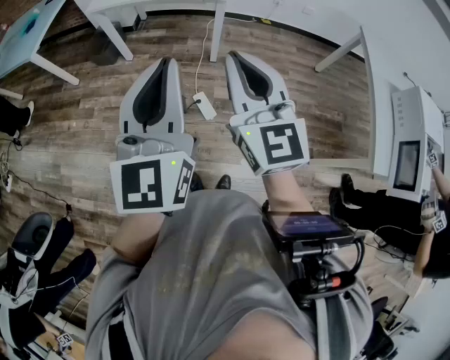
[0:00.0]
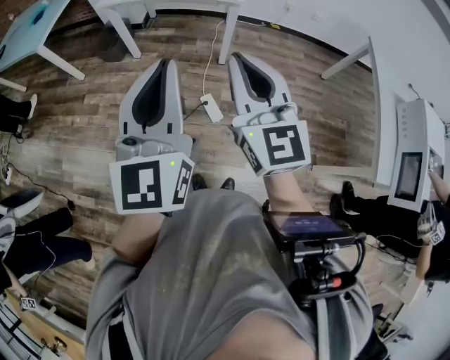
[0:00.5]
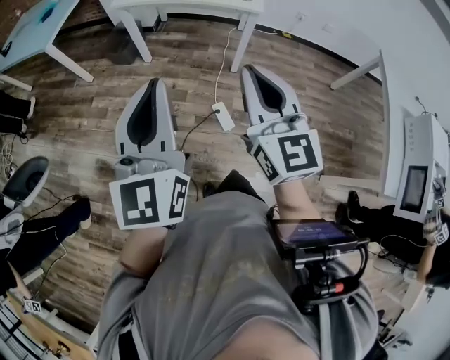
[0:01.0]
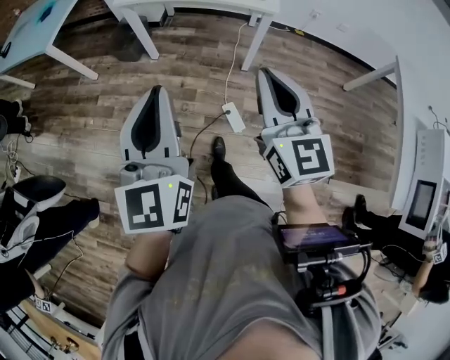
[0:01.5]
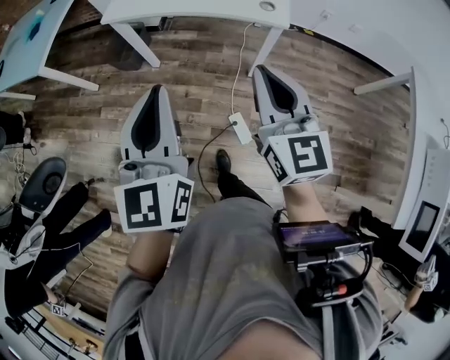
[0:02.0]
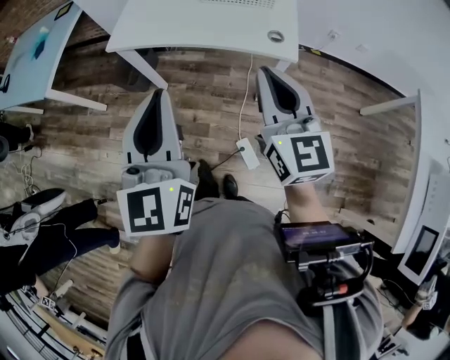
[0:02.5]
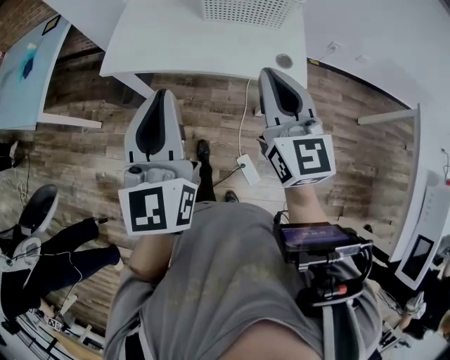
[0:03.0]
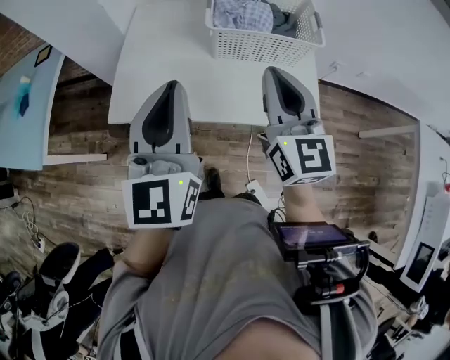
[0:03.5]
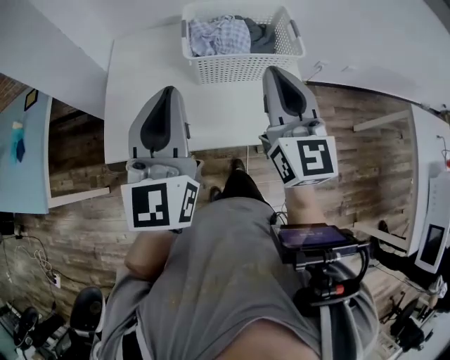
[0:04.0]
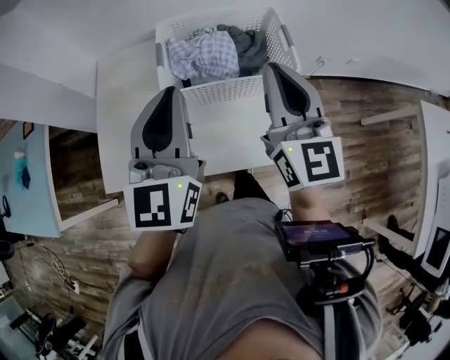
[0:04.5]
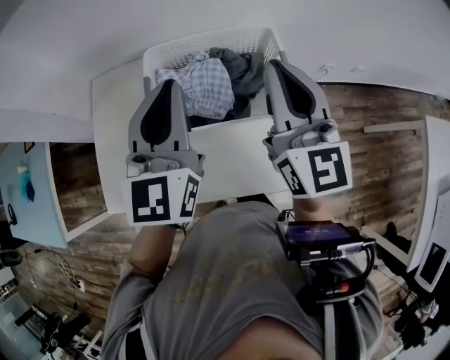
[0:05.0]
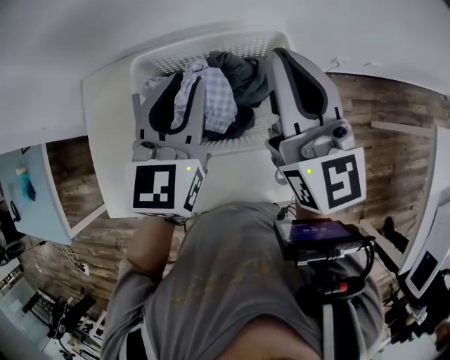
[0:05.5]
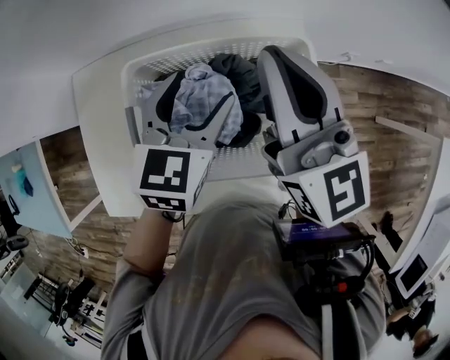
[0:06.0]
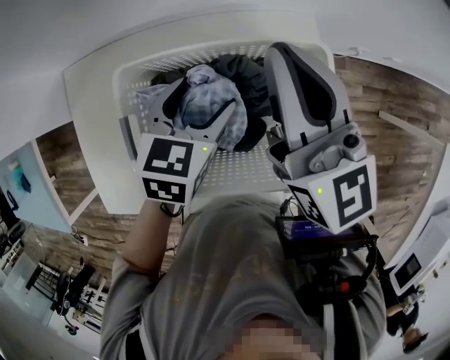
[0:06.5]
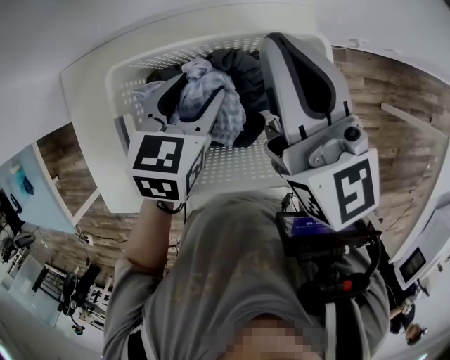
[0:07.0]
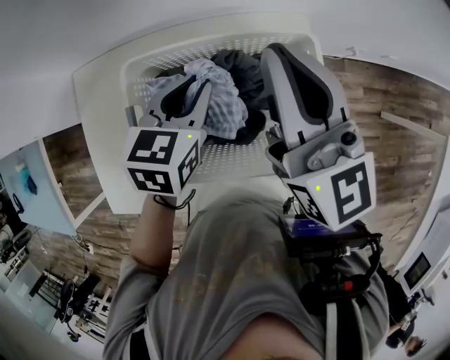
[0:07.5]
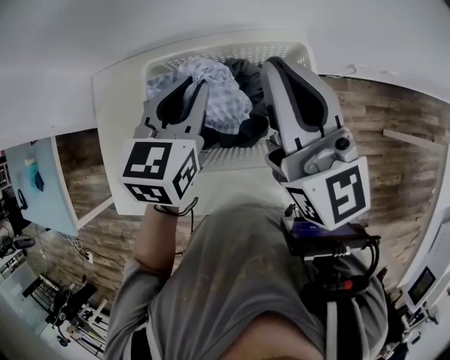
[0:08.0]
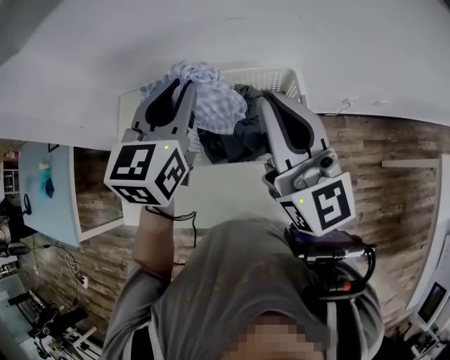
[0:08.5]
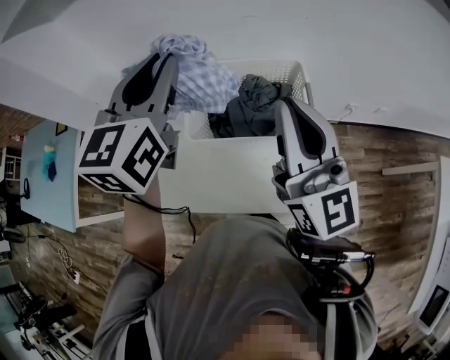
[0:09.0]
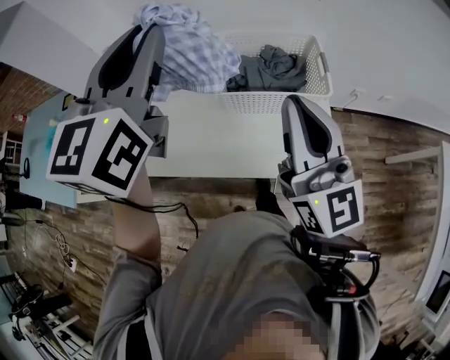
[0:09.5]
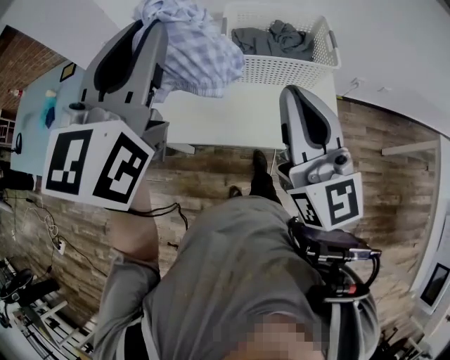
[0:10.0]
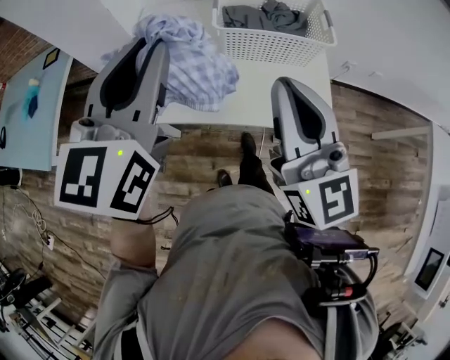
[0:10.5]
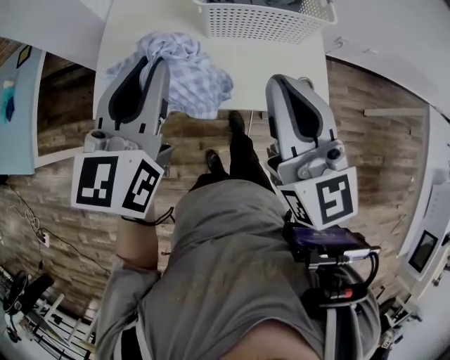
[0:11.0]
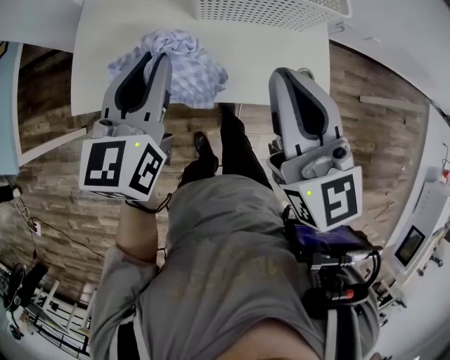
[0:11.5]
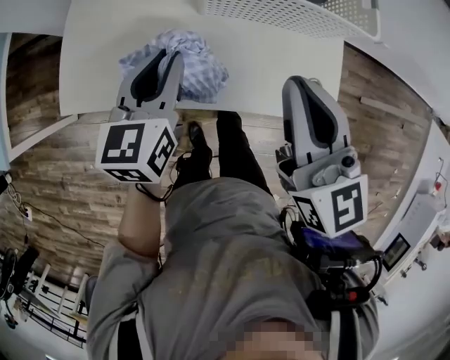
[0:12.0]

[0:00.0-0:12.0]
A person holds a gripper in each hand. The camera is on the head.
0:00.0 to 0:02.0: The left gripper is displaced forward and to the left by approximately 30 cm, while the right gripper moves forward, about 30 cm.
0:02.0 to 0:04.0: The two grippers travel together, forward, approximately 40 cm.
0:04.0 to 0:06.0: The left gripper shifts some 40 cm forward, downward and to the right, tilts its fingers roughly 40 degrees downward, and opens. The right gripper is displaced forward by roughly 30 cm.
0:06.0 to 0:08.0: The left gripper shifts by approximately 5 cm, and closes.
0:08.0 to 0:10.0: The right gripper shifts roughly 35 cm backward, while the left gripper travels backward, upward and to the left by roughly 40 cm, and tips its fingers upward by some 30 degrees.
0:10.0 to 0:12.0: The left gripper goes some 35 cm downward, and turns by about 30 degrees; the right gripper heads downward, covering about 15 cm, and rotates approximately 20 degrees.

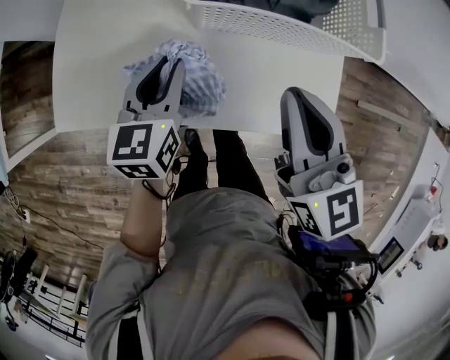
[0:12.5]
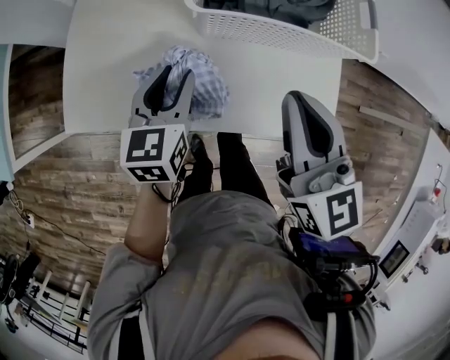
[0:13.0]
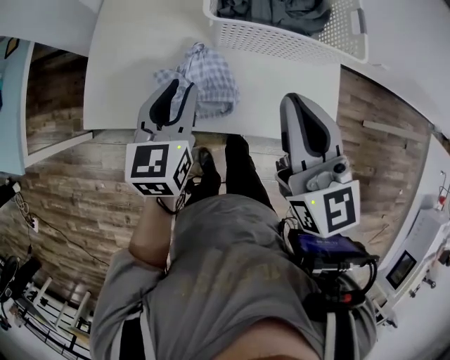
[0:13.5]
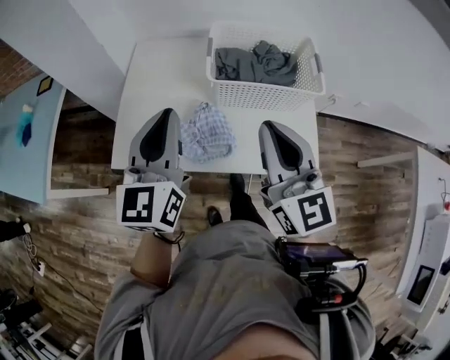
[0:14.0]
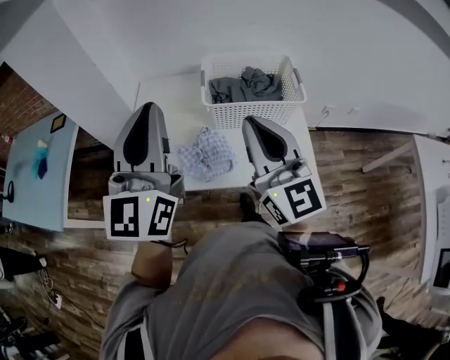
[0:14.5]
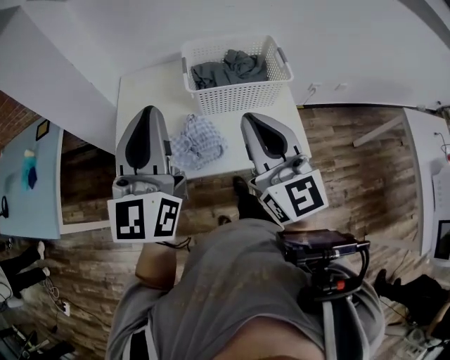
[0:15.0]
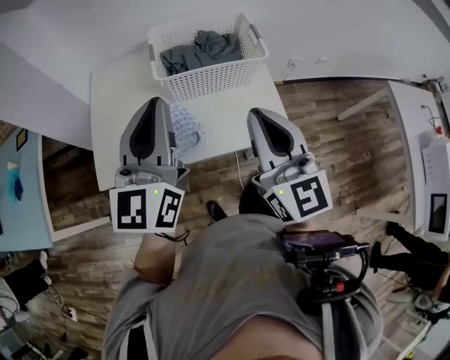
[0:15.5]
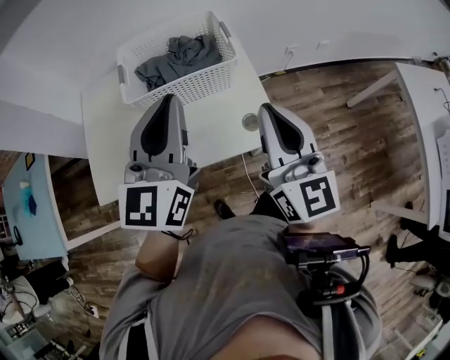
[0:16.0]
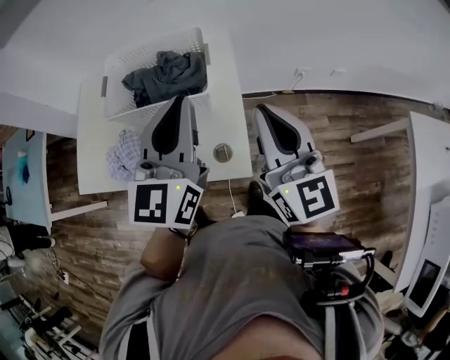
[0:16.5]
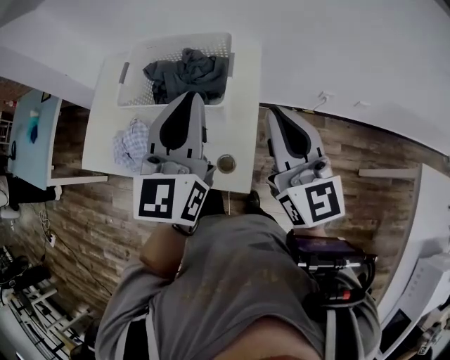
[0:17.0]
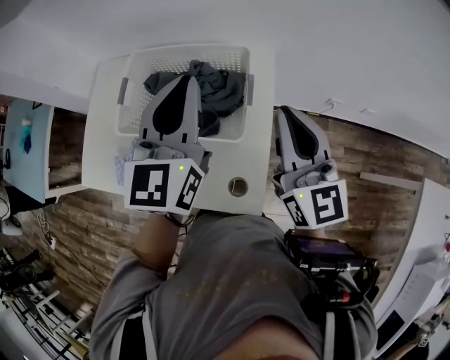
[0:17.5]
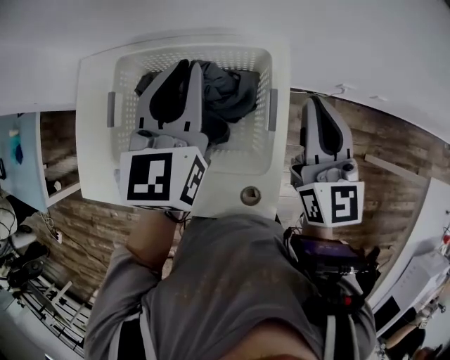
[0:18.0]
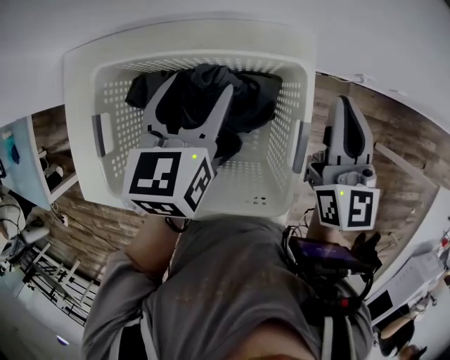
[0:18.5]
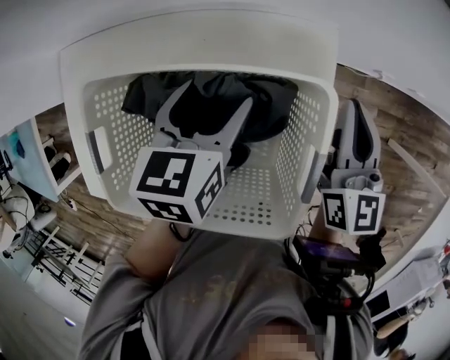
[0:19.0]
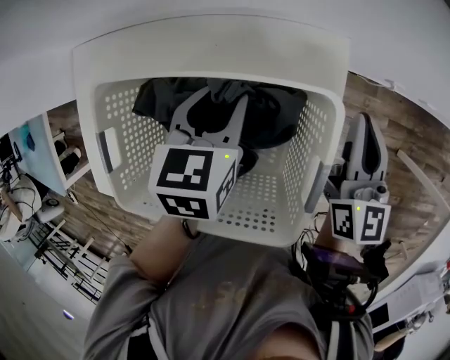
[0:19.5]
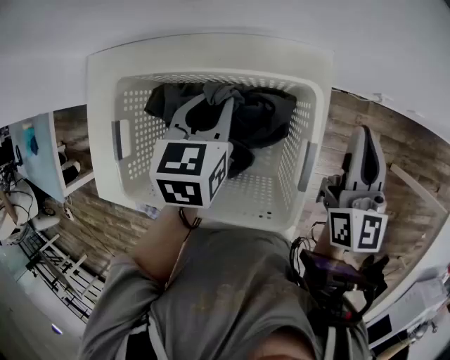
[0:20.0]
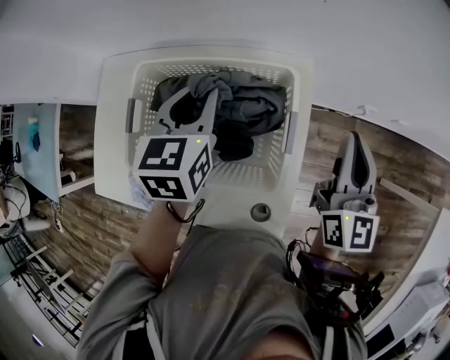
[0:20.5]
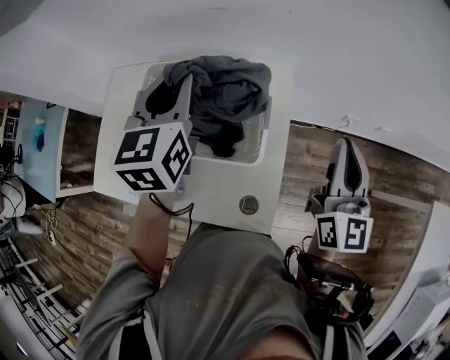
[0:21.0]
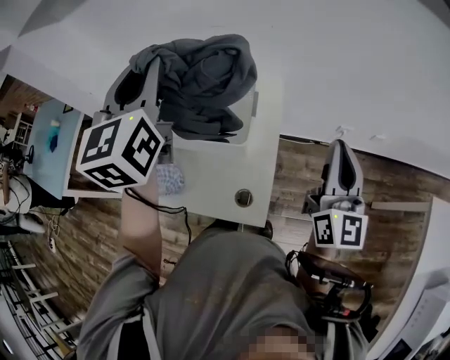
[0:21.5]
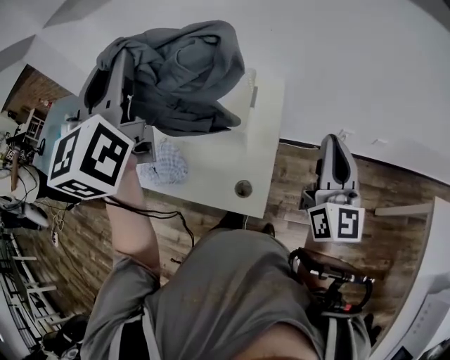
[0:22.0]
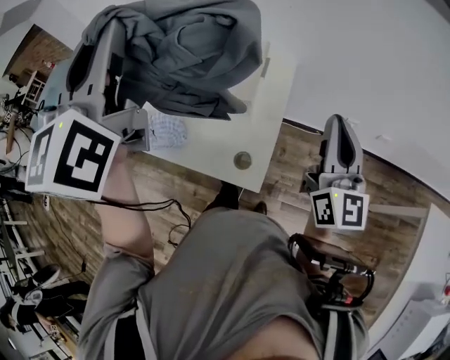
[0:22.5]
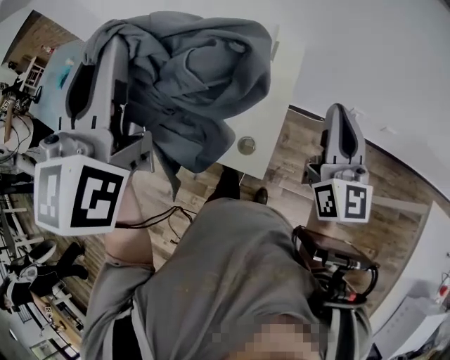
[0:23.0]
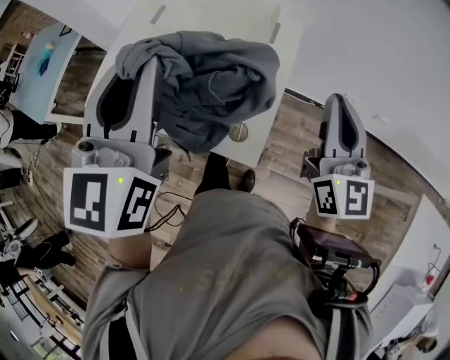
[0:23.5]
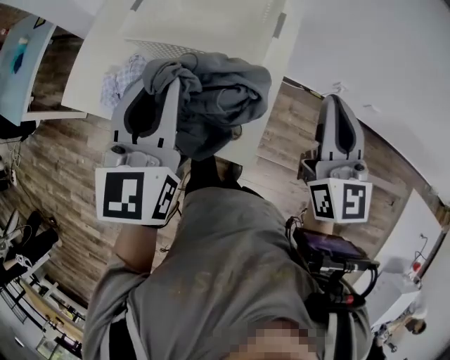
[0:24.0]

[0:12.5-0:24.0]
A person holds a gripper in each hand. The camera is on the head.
0:12.5 to 0:14.5: The left gripper travels upward by roughly 35 cm, and points its fingers roughly 40 degrees further upward. Meanwhile the right gripper is displaced upward and backward by roughly 20 cm, and rotates about 30 degrees.
0:14.5 to 0:16.5: Both grippers move to the right, some 35 cm.
0:16.5 to 0:18.5: Both grippers travel together forward and downward, some 35 cm. The left gripper tilts its fingers approximately 40 degrees downward, and opens its fingers; the right gripper turns by about 20 degrees.
0:18.5 to 0:20.0: The left gripper closes up.
0:20.0 to 0:22.0: The right gripper goes about 30 cm backward and upward, and changes its angle by some 30 degrees; the left gripper heads upward and backward, covering approximately 50 cm, and angles its fingers upward, by about 50 degrees.
0:22.0 to 0:24.0: The right gripper travels to the left by approximately 10 cm, and swivels about 20 degrees; the left gripper moves downward, approximately 25 cm.

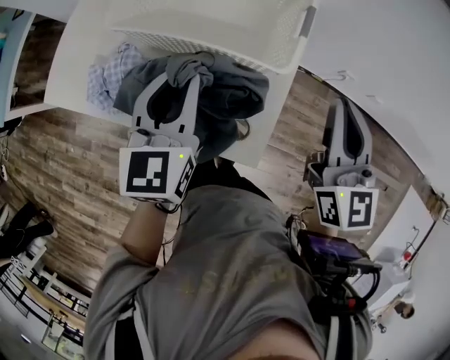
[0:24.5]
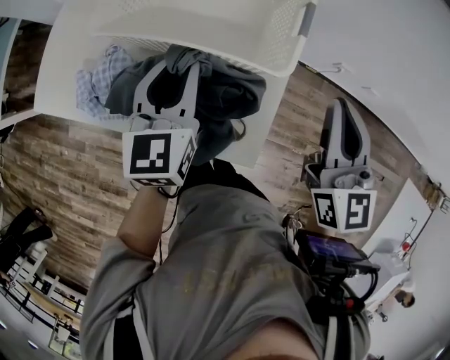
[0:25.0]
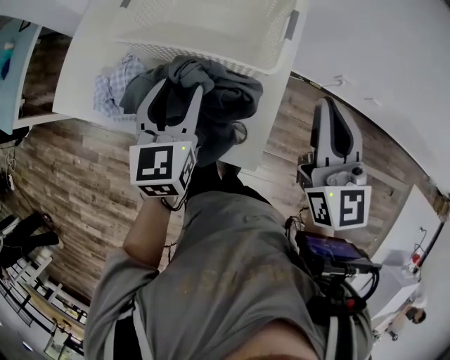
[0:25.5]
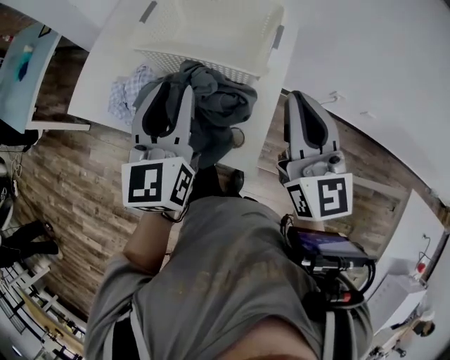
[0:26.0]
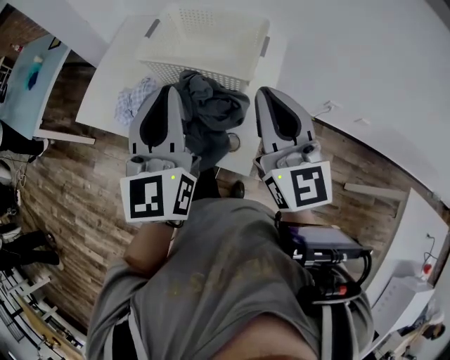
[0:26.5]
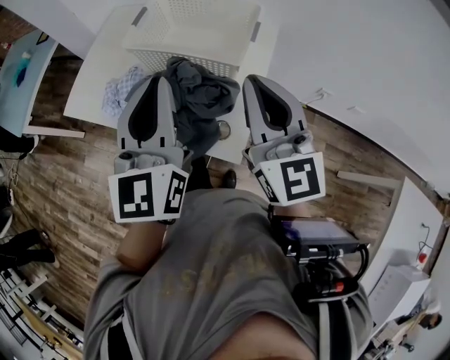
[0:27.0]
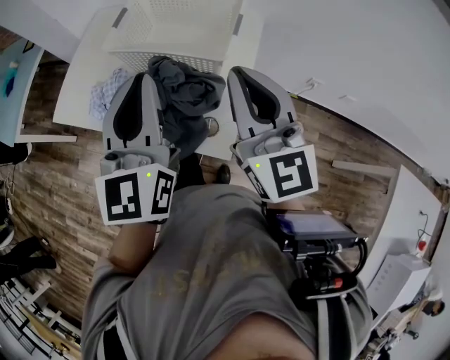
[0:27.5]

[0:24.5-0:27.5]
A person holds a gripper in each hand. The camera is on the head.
0:24.5 to 0:26.0: The left gripper is displaced upward by some 5 cm, while the right gripper is displaced to the left by some 5 cm.
0:26.0 to 0:27.5: The left gripper goes roughly 5 cm upward, and closes.
